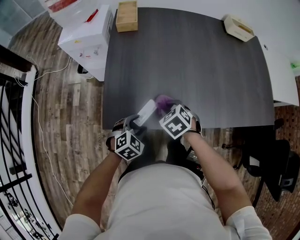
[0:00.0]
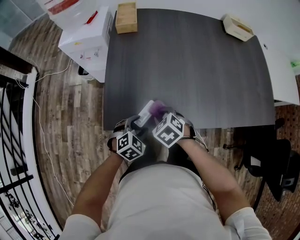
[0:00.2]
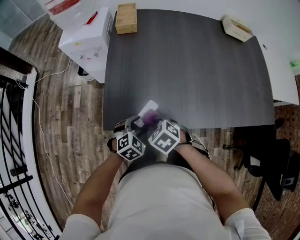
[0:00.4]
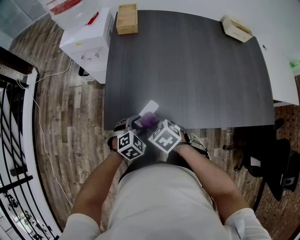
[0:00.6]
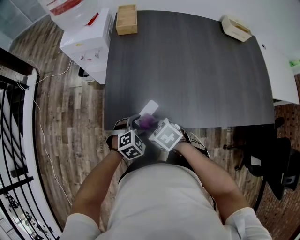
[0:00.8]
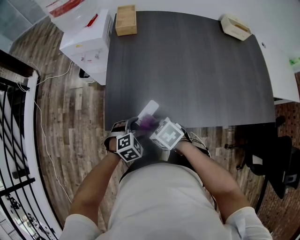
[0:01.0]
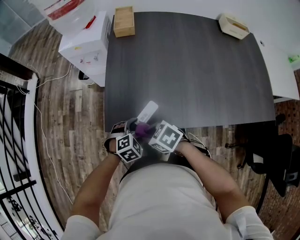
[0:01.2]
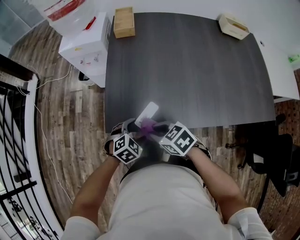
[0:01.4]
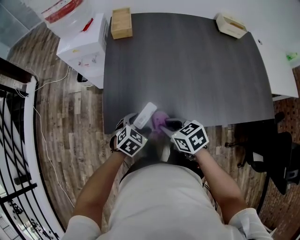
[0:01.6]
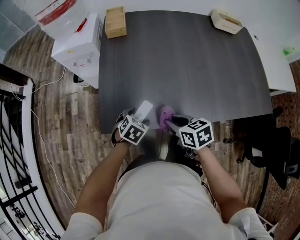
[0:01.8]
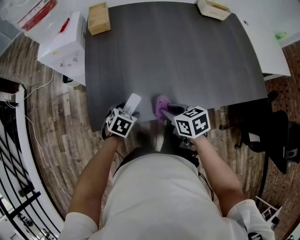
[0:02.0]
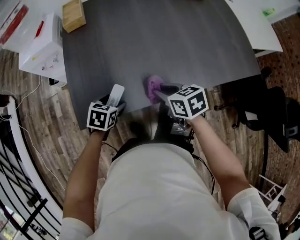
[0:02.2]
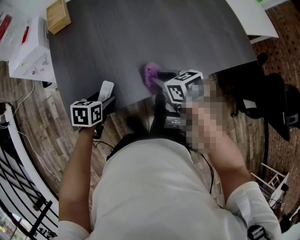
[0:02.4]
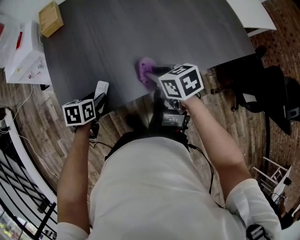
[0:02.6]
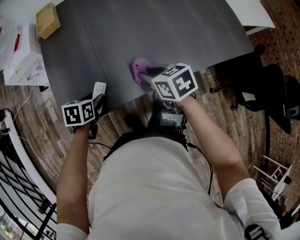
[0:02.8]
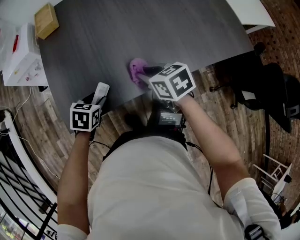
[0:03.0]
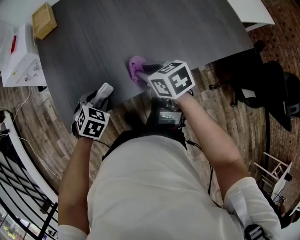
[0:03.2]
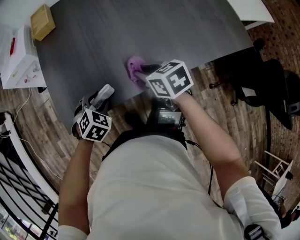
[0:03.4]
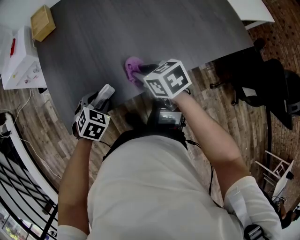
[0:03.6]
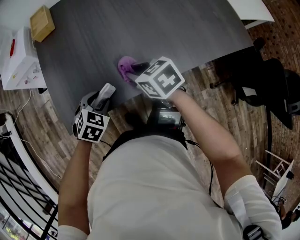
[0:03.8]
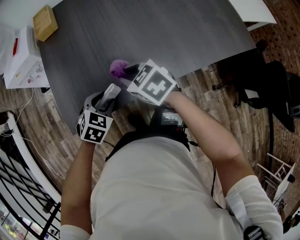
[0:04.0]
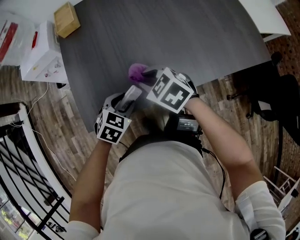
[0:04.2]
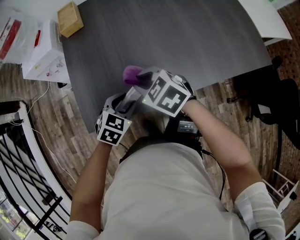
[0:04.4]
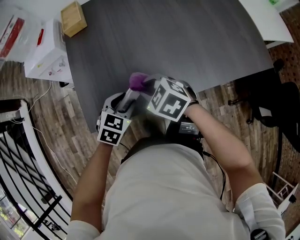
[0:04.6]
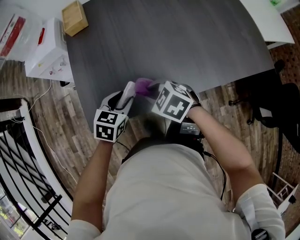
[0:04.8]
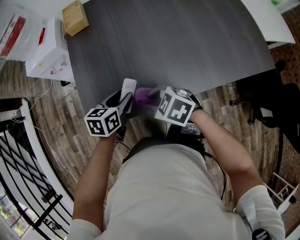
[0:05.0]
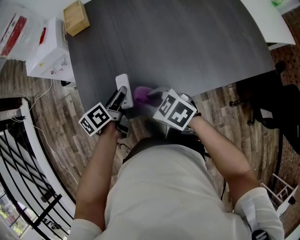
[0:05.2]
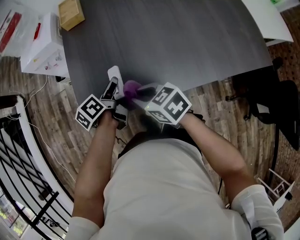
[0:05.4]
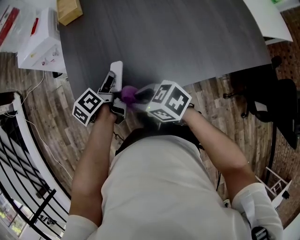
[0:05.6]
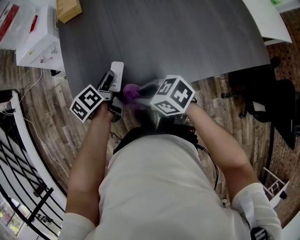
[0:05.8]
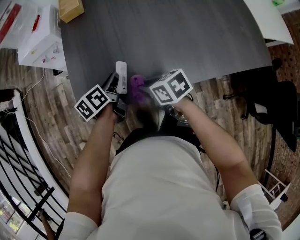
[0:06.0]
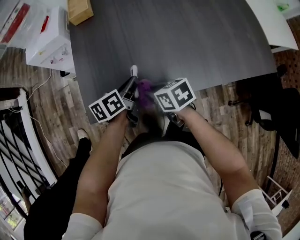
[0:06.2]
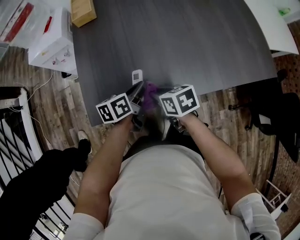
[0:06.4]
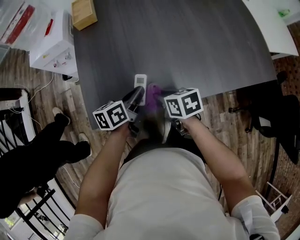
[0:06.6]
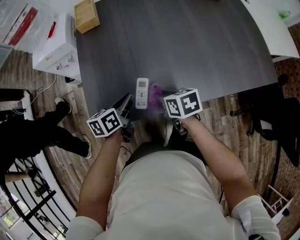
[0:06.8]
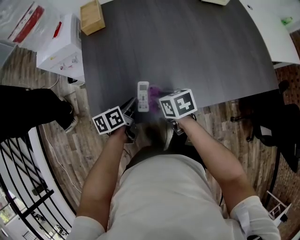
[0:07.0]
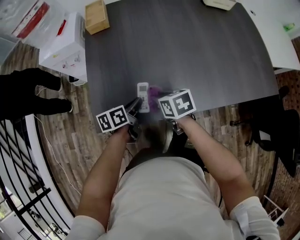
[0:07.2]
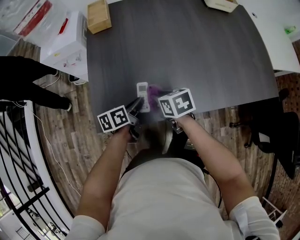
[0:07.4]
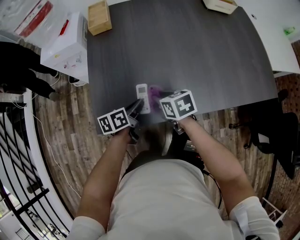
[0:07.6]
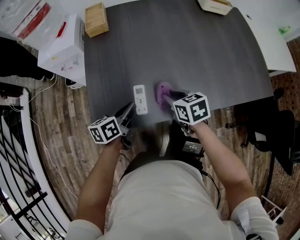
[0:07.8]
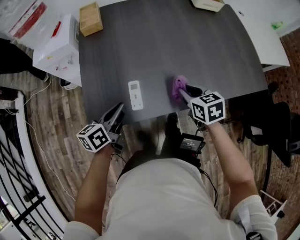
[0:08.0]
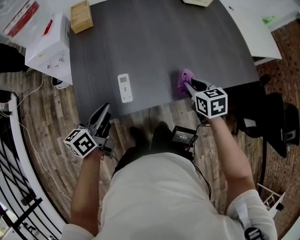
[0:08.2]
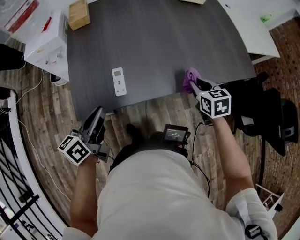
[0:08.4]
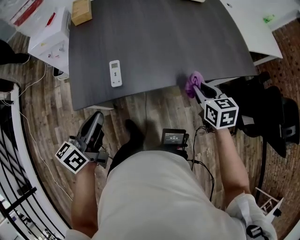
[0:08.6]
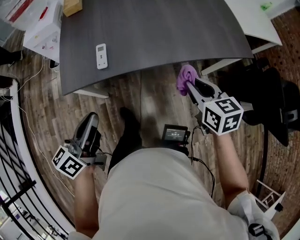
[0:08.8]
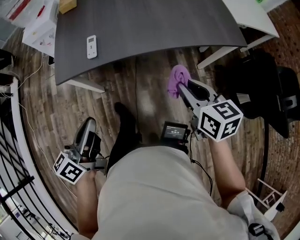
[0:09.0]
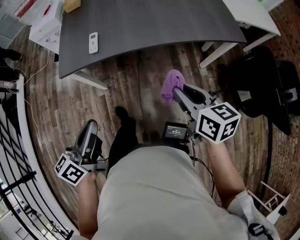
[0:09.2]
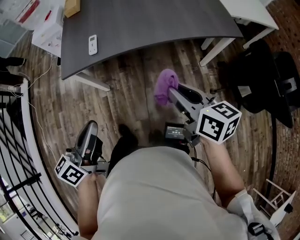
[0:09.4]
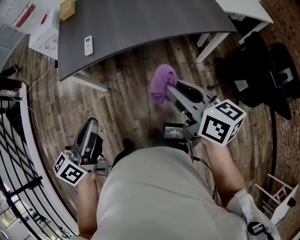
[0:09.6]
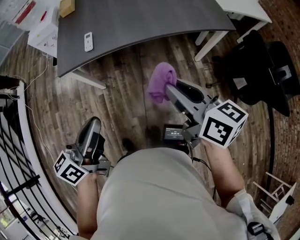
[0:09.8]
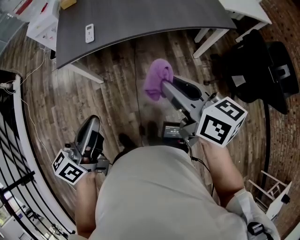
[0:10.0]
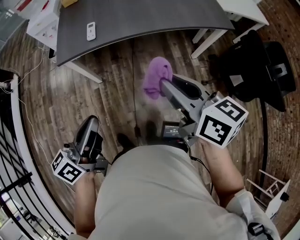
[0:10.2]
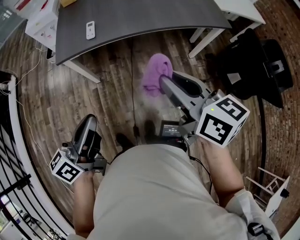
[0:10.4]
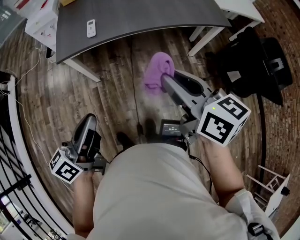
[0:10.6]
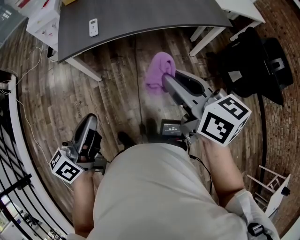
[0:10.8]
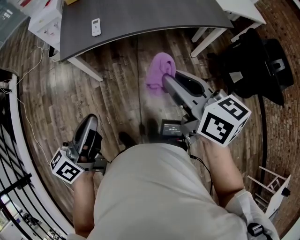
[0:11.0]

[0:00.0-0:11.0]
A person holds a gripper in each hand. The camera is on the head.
0:00.0 to 0:01.6: The right gripper rotates some 30 degrees.
0:01.6 to 0:03.2: The right gripper shifts some 15 cm to the right and forward, and turns by about 20 degrees; the left gripper closes its fingers.
0:03.2 to 0:04.8: The left gripper turns by some 30 degrees; the right gripper goes roughly 10 cm to the left, and swivels roughly 40 degrees.
0:04.8 to 0:06.2: The right gripper changes its angle by some 40 degrees; the left gripper rotates around the line of its fingers by some 50 degrees, counterclockwise from behind, and closes its fingers.
0:06.2 to 0:07.8: The left gripper moves roughly 5 cm. Meanwhile the right gripper moves to the right and forward, roughly 10 cm.
0:07.8 to 0:09.4: Both grippers are carried backward and to the right, roughly 40 cm. Both grippers travel together upward, approximately 20 cm. The left gripper turns by roughly 20 degrees. Meanwhile the right gripper turns by some 30 degrees.
0:09.4 to 0:11.0: The left gripper moves backward, about 5 cm. The right gripper heads to the left, backward and upward, covering about 15 cm.

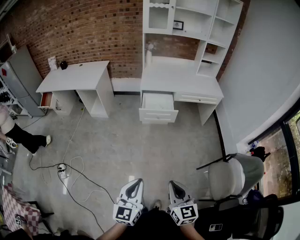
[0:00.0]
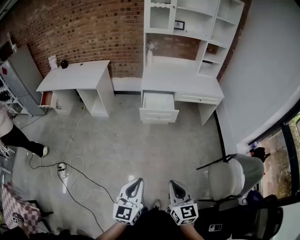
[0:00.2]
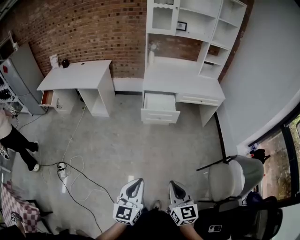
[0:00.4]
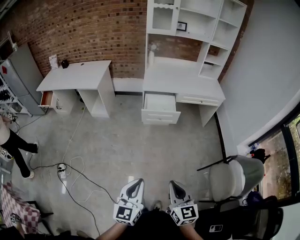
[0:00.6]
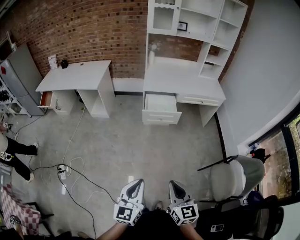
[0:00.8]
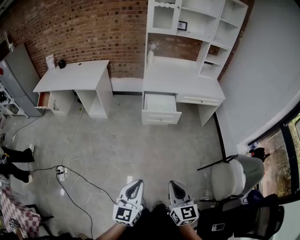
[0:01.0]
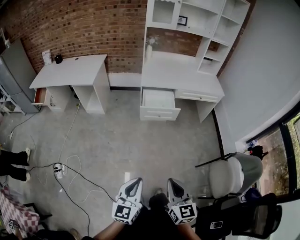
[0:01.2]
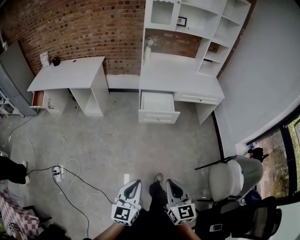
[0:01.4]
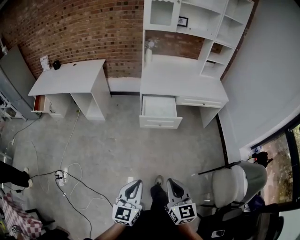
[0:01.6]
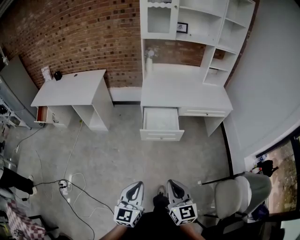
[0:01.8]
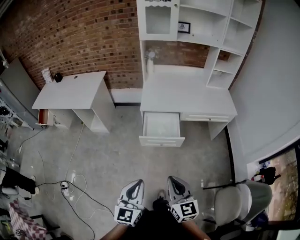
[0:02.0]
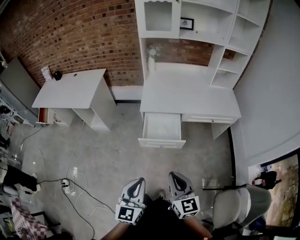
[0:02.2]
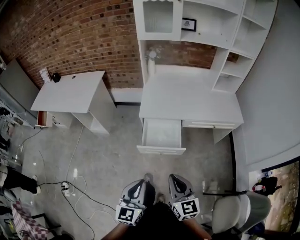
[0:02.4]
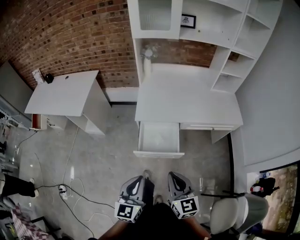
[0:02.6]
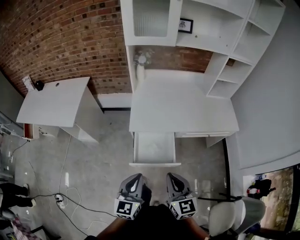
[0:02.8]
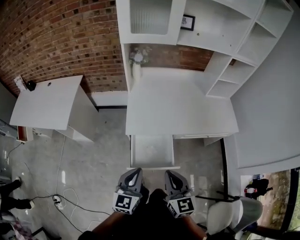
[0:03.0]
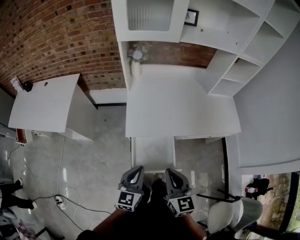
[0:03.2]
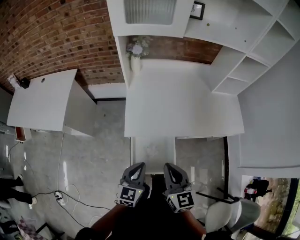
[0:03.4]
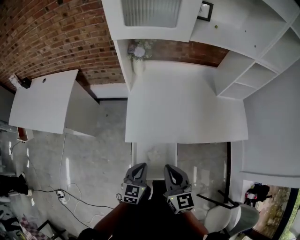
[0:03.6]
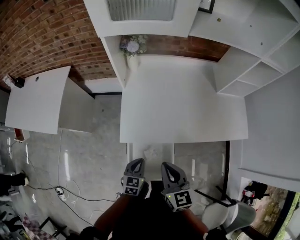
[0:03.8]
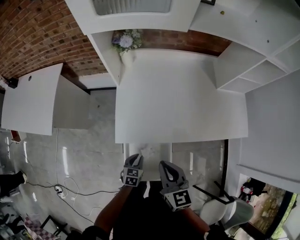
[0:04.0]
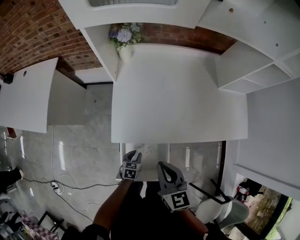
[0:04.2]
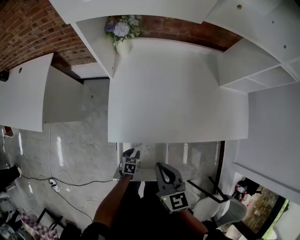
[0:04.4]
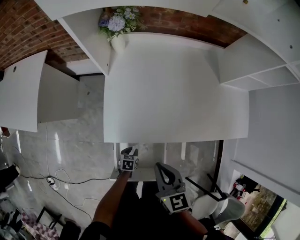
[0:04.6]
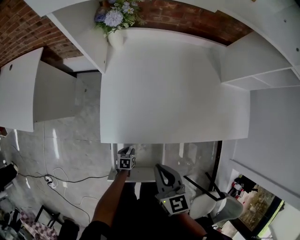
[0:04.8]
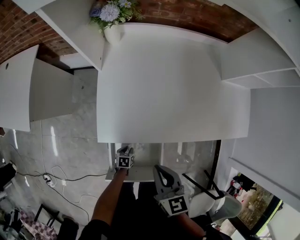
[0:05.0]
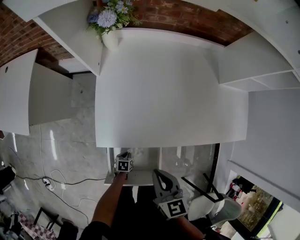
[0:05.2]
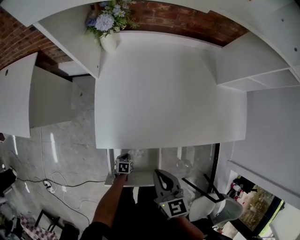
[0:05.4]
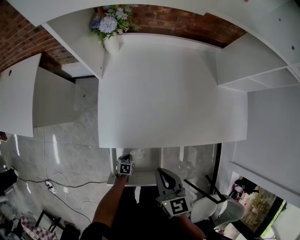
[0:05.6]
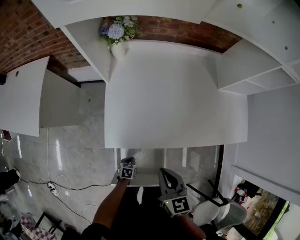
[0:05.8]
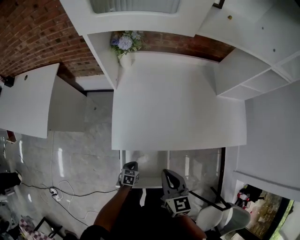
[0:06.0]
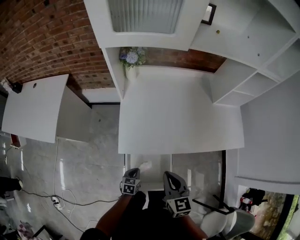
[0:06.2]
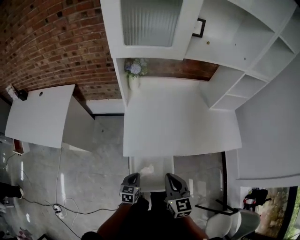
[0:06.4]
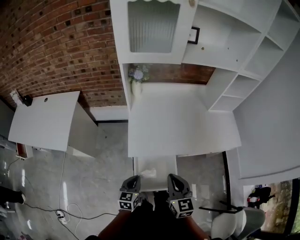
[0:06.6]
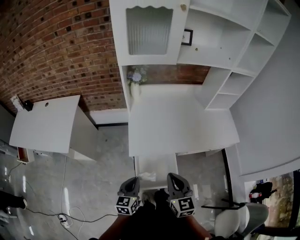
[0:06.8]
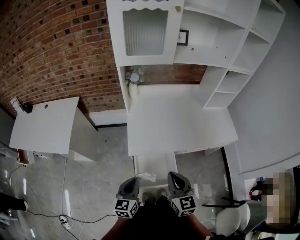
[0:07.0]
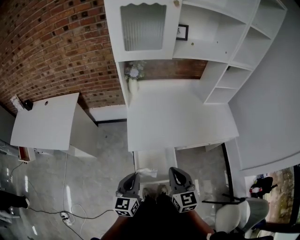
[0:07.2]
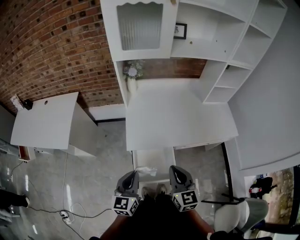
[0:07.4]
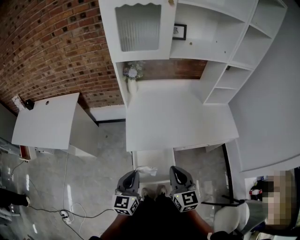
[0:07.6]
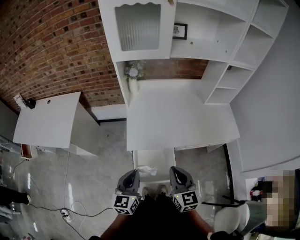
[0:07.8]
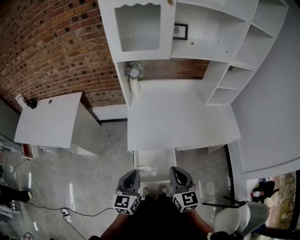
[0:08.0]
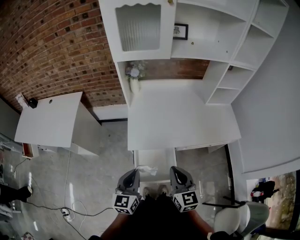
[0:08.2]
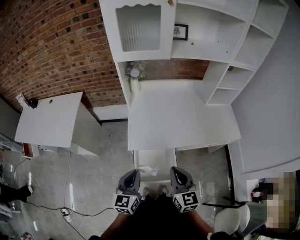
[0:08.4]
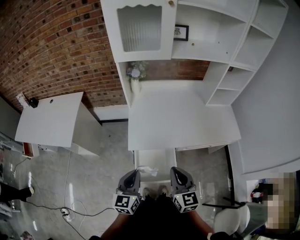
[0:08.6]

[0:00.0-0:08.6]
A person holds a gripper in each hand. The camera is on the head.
0:00.0 to 0:01.4: Both grippers travel together forward and to the left, some 10 cm.
0:01.4 to 0:02.8: The two grippers travel together, forward, approximately 60 cm.
0:02.8 to 0:04.4: The right gripper is displaced forward by some 30 cm; the left gripper is displaced downward and forward by some 50 cm, points its fingers roughly 50 degrees further downward, and opens up.
0:04.4 to 0:05.8: The left gripper heads downward, covering some 5 cm, and closes.
0:05.8 to 0:07.2: The left gripper heads upward, covering some 50 cm, and tilts its fingers roughly 50 degrees upward. Meanwhile the right gripper is displaced backward and upward by roughly 25 cm.
0:07.2 to 0:08.6: The grippers move only a little.

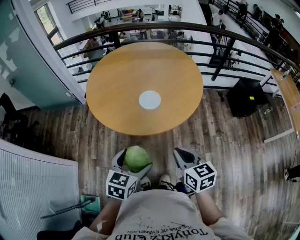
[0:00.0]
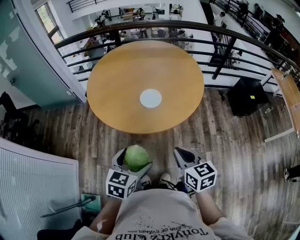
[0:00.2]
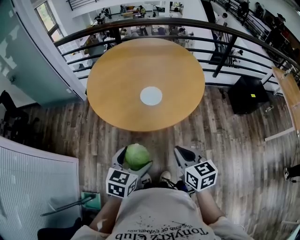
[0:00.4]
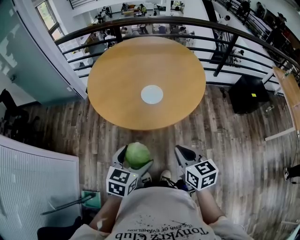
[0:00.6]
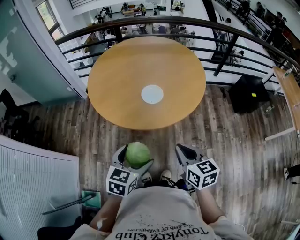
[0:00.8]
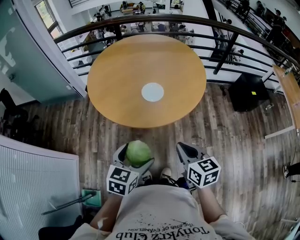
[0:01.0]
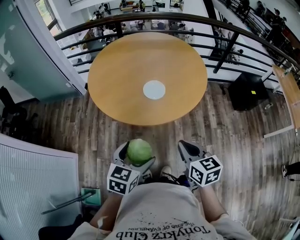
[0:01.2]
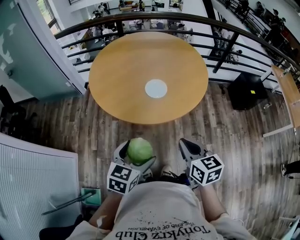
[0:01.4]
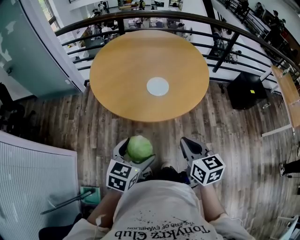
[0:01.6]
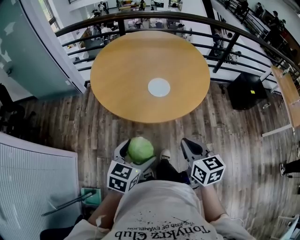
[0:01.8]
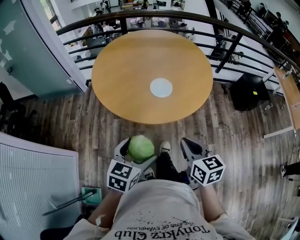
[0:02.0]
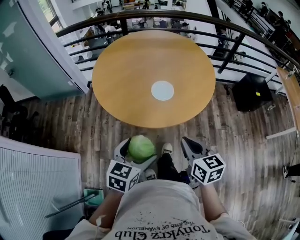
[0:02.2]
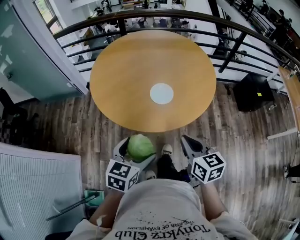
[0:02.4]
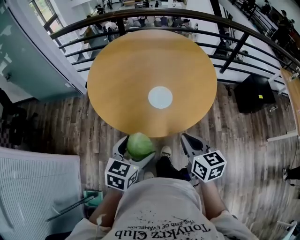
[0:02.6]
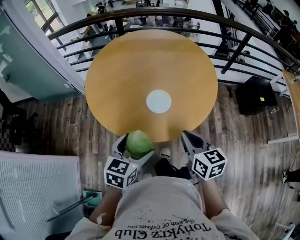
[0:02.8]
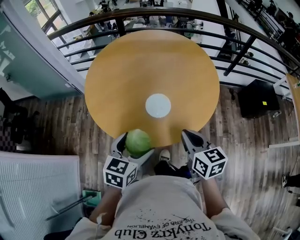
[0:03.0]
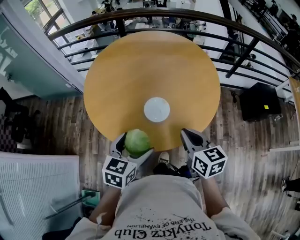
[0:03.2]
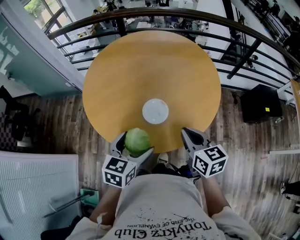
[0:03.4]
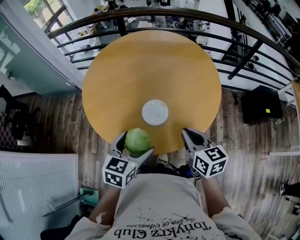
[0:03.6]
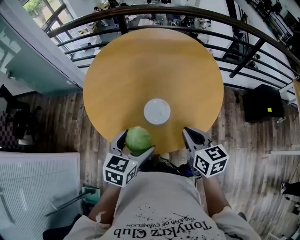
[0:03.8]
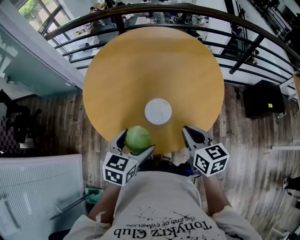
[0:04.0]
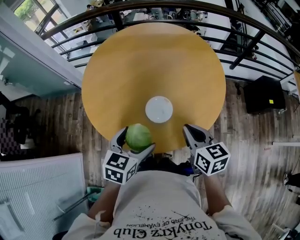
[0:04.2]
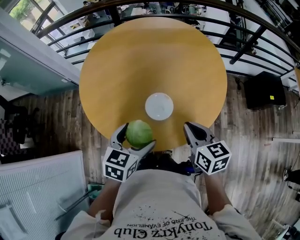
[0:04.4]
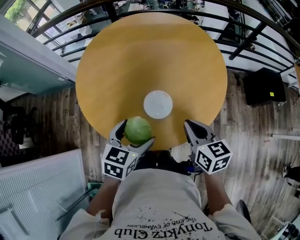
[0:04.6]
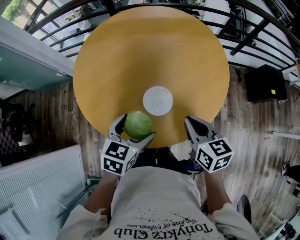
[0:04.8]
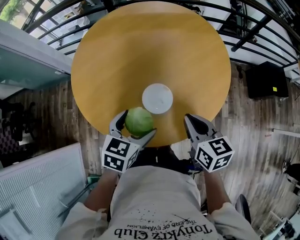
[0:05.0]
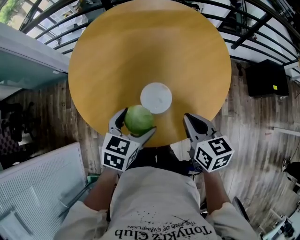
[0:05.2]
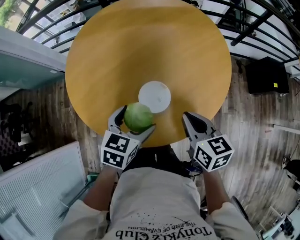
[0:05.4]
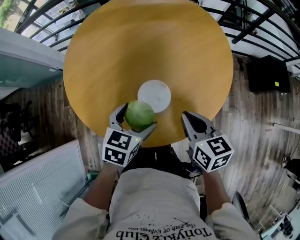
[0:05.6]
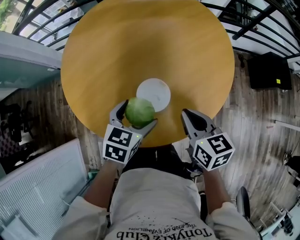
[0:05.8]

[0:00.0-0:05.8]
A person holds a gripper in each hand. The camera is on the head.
0:00.0 to 0:01.4: The grippers make only small movements.
0:01.4 to 0:02.8: Both grippers move forward, some 15 cm.
0:02.8 to 0:04.4: The two grippers go approximately 15 cm forward.
0:04.4 to 0:05.8: The left gripper is displaced forward and downward by roughly 15 cm; the right gripper travels downward and forward by approximately 10 cm.
